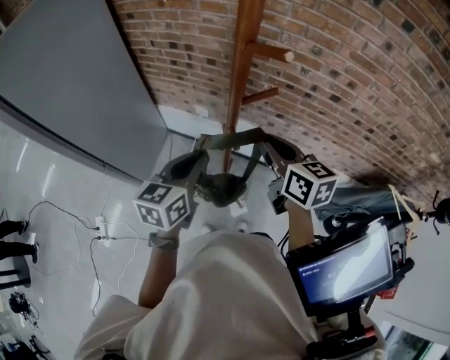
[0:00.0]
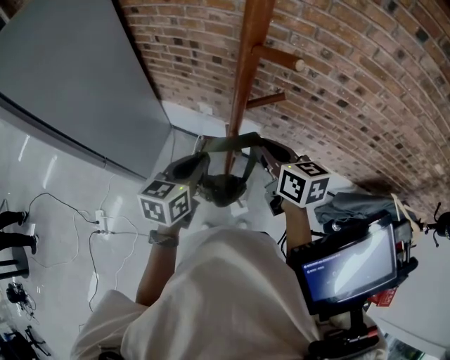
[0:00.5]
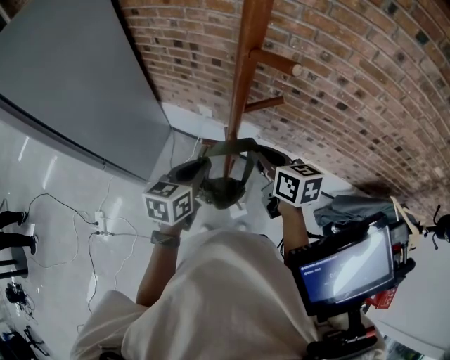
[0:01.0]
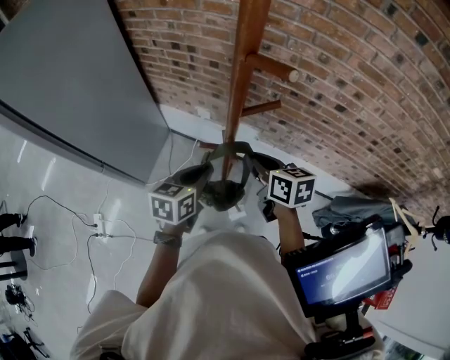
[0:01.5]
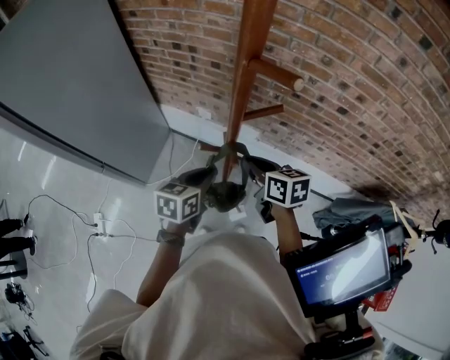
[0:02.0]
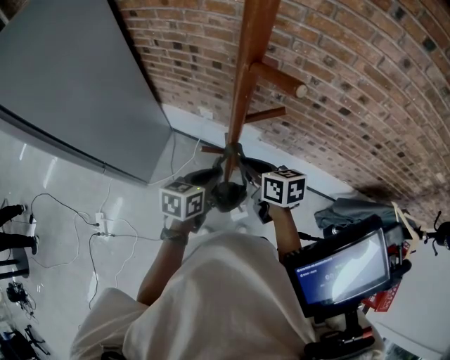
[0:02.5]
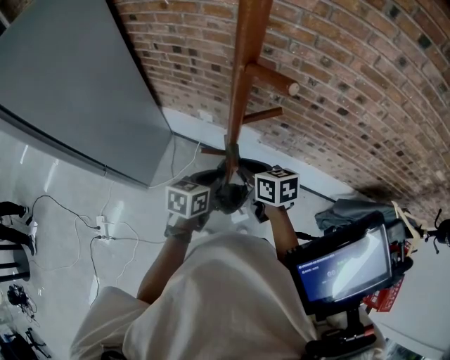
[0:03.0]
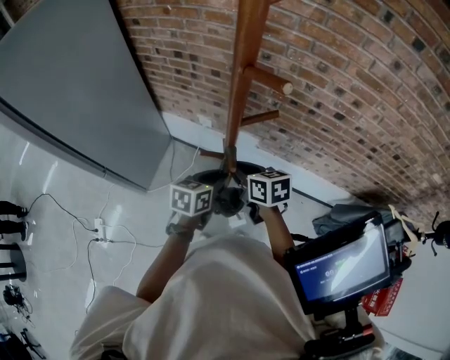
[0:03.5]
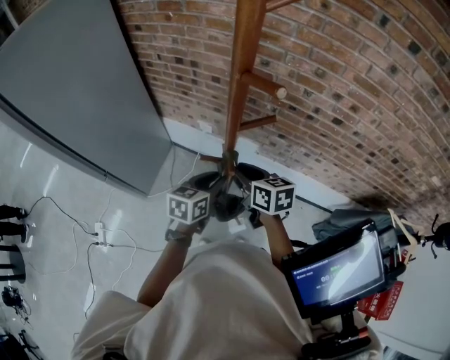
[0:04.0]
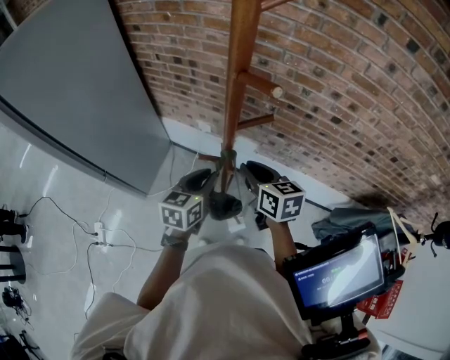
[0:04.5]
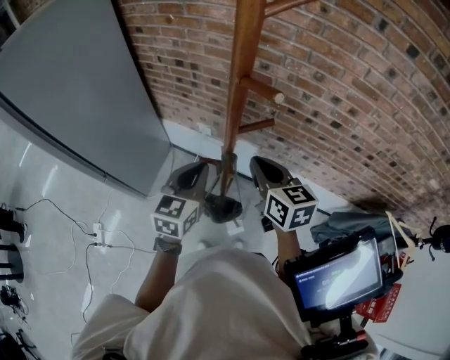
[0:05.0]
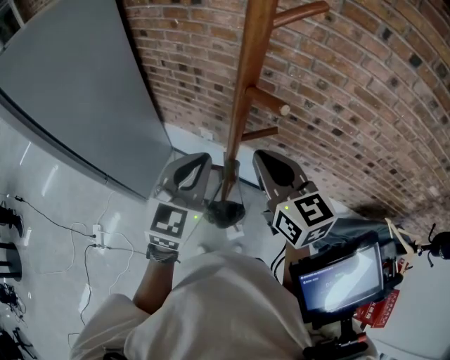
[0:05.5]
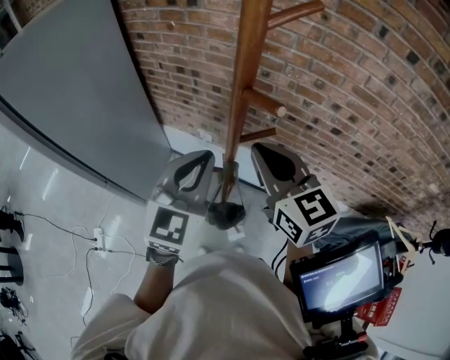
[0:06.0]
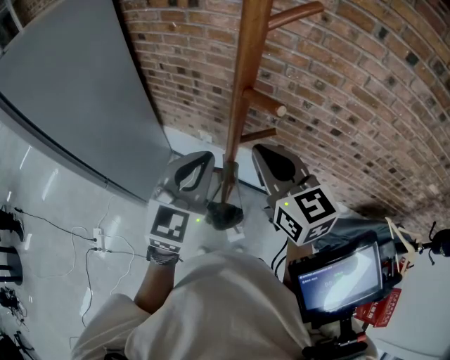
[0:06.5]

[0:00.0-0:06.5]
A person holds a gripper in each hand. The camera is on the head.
0:00.0 to 0:02.0: The two grippers go some 10 cm downward.
0:02.0 to 0:04.5: The grippers stay close to where they were, moving slightly.
0:04.5 to 0:06.5: The grippers both shift upward by some 20 cm. The right gripper turns by about 30 degrees. The left gripper turns by about 40 degrees.

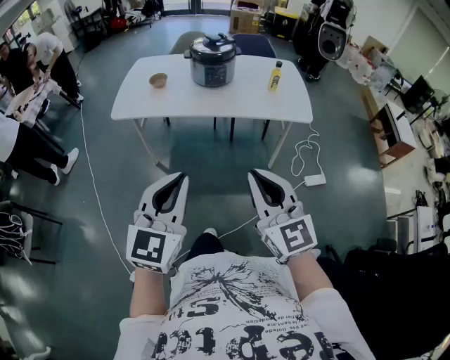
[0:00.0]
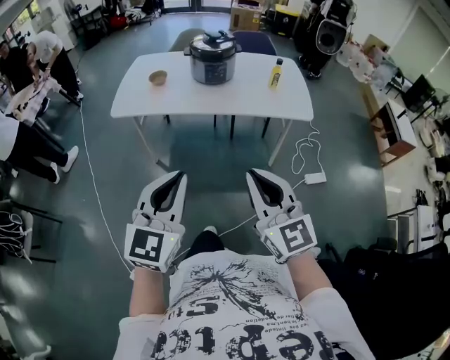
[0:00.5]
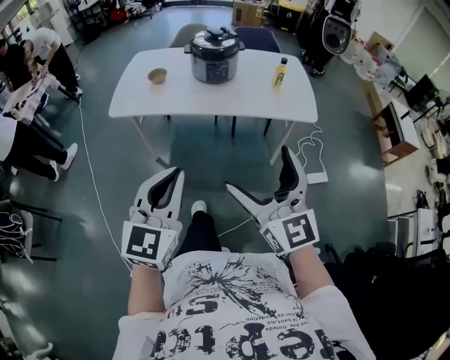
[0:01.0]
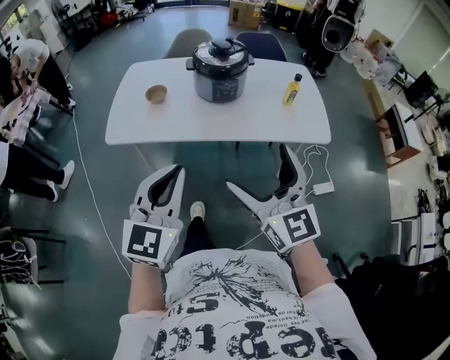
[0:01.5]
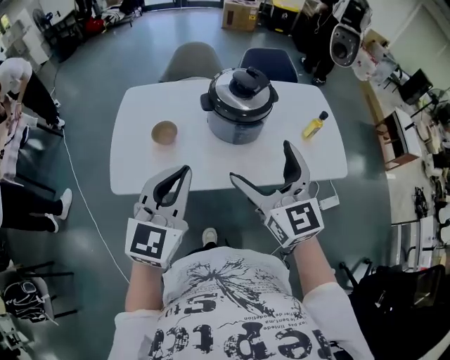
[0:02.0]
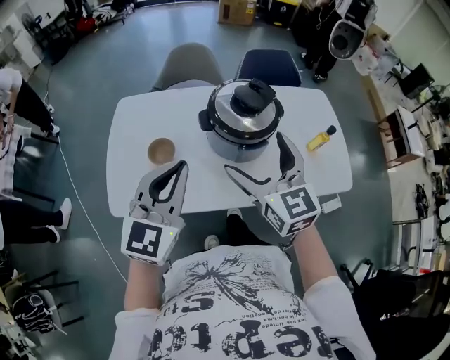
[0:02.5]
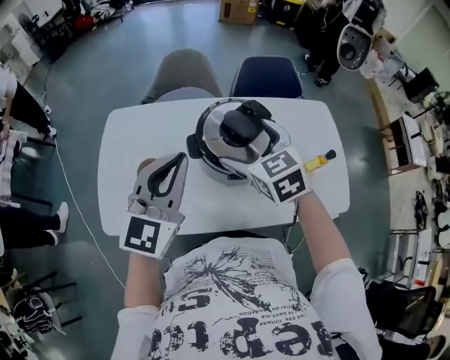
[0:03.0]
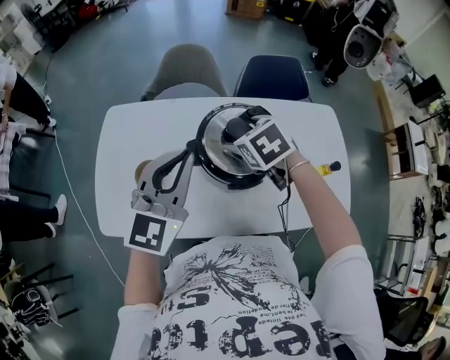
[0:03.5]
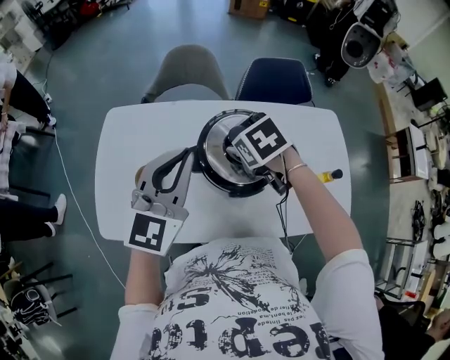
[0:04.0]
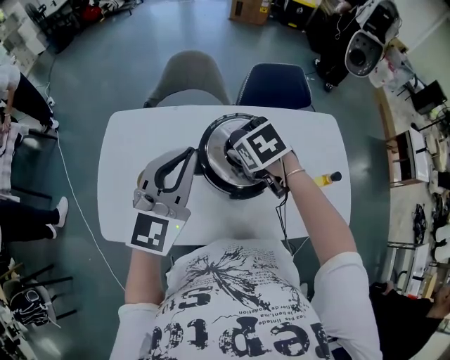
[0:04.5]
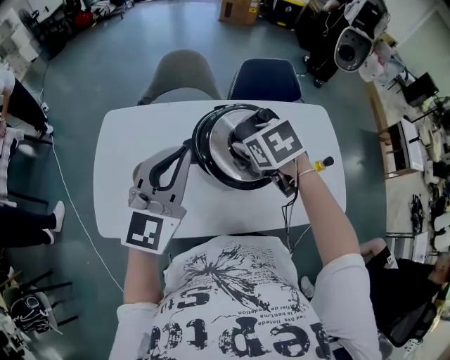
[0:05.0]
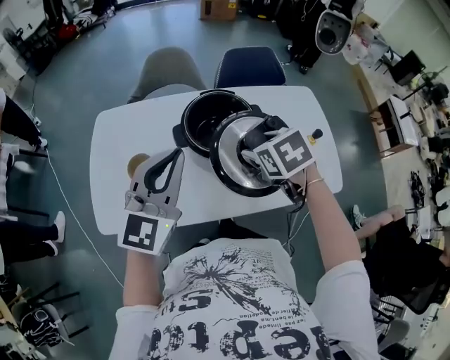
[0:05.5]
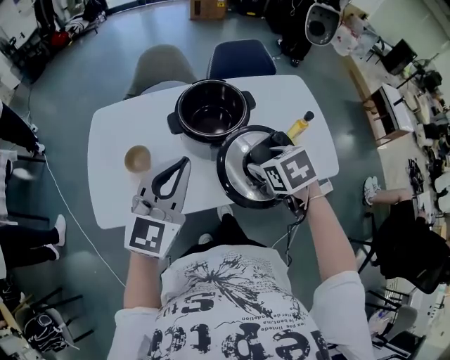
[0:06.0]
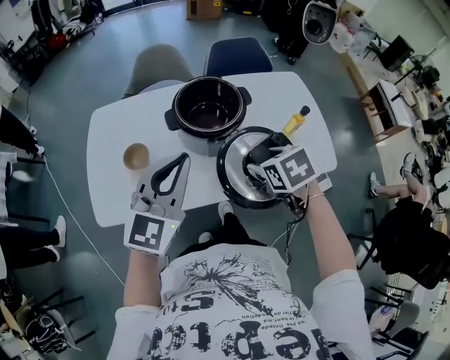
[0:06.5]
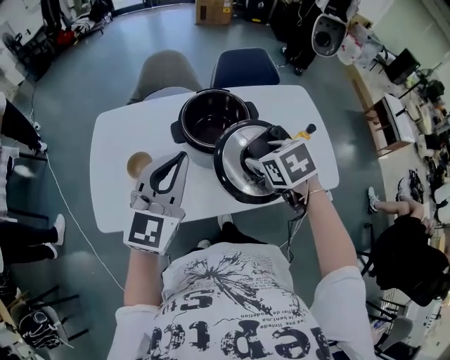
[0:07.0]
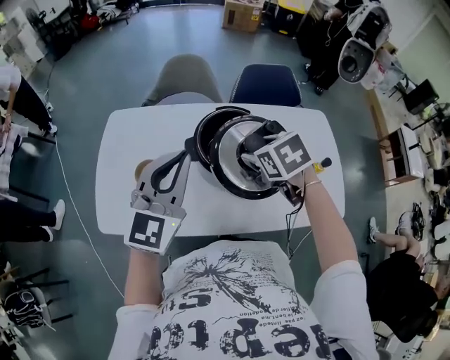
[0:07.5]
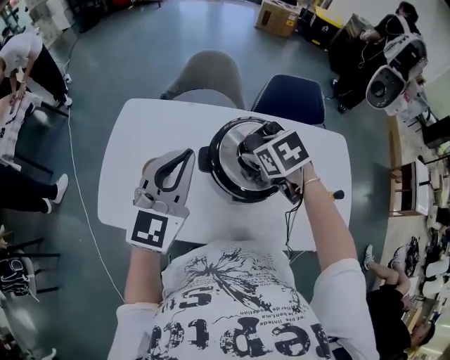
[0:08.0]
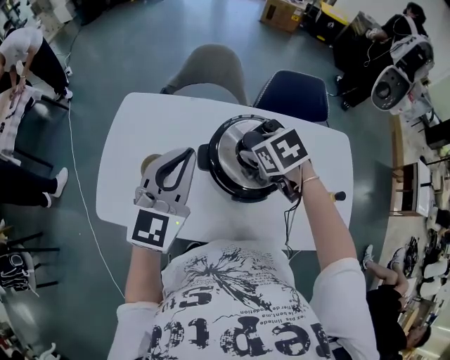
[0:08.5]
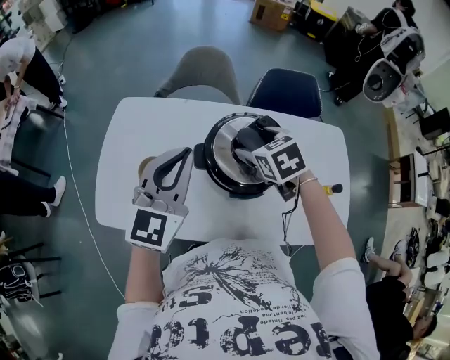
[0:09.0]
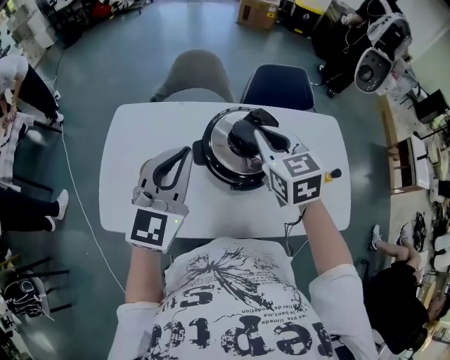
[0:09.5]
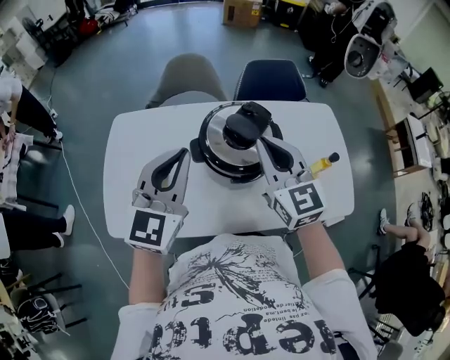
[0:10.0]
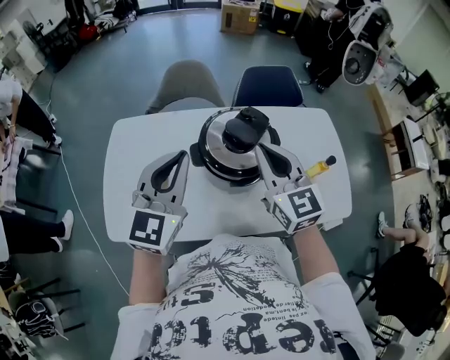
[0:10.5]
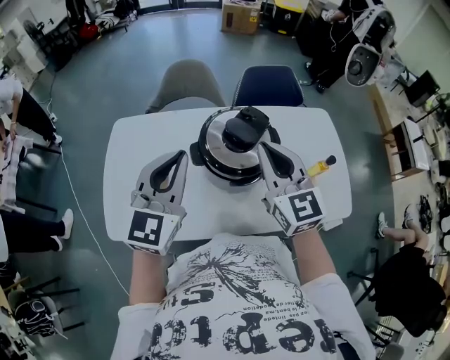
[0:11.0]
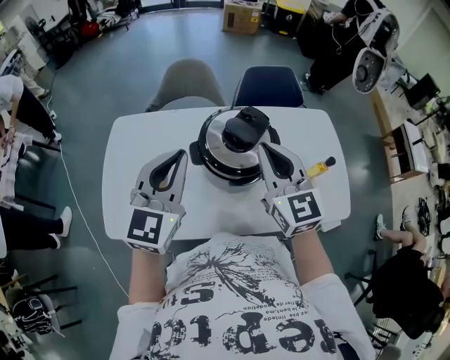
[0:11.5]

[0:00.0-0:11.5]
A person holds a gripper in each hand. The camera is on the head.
0:00.0 to 0:02.0: The pair of grippers is taken forward, about 60 cm. The right gripper opens.
0:02.0 to 0:04.0: The grippers both shift forward by approximately 40 cm. The right gripper tilts its fingers about 60 degrees downward, and closes.
0:04.0 to 0:06.0: Both grippers move backward, some 25 cm.
0:06.0 to 0:07.5: The grippers both shift forward by roughly 15 cm.
0:07.5 to 0:09.5: The right gripper moves forward and upward, some 10 cm, angles its fingers upward, by some 30 degrees, and closes up. The left gripper is displaced forward by roughly 5 cm.
0:09.5 to 0:11.5: The right gripper is displaced backward by roughly 10 cm, and turns by some 20 degrees.

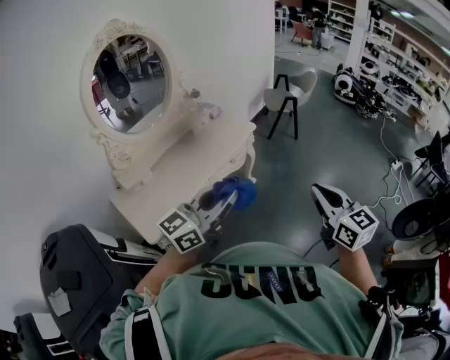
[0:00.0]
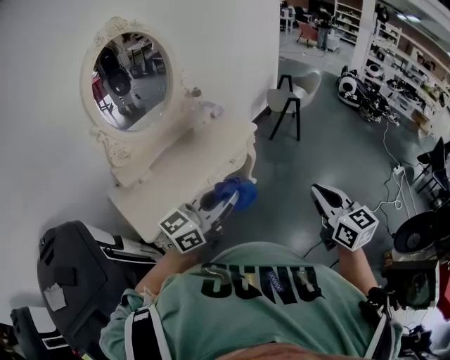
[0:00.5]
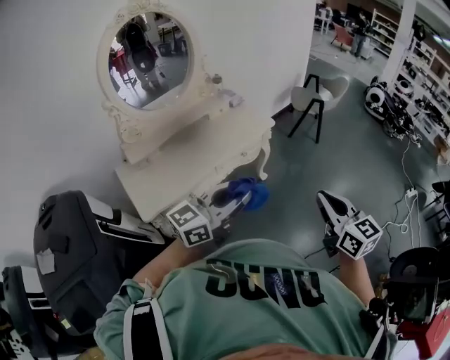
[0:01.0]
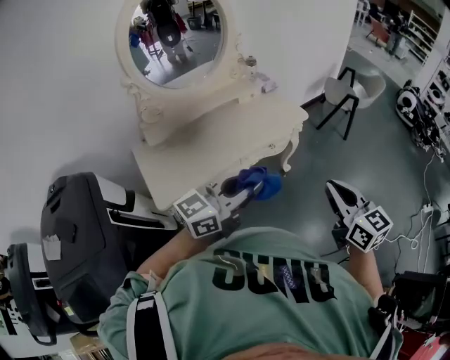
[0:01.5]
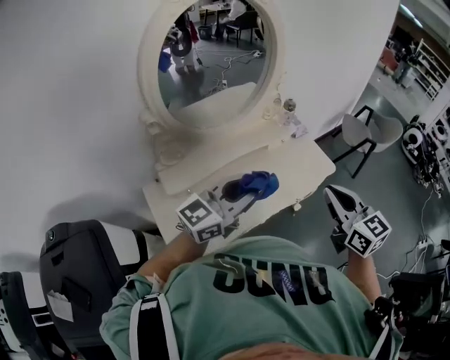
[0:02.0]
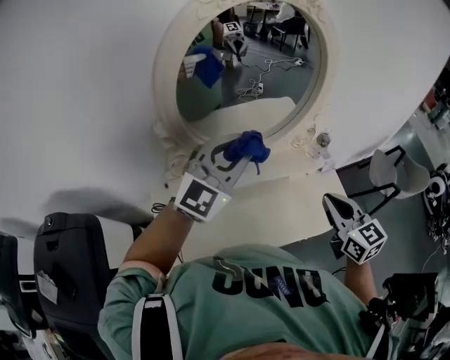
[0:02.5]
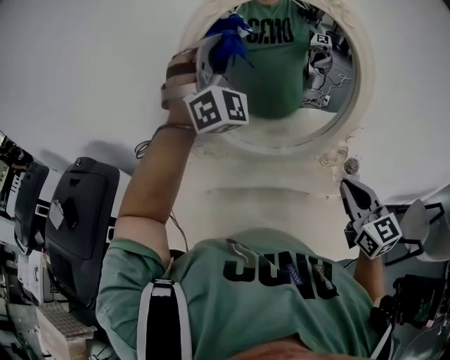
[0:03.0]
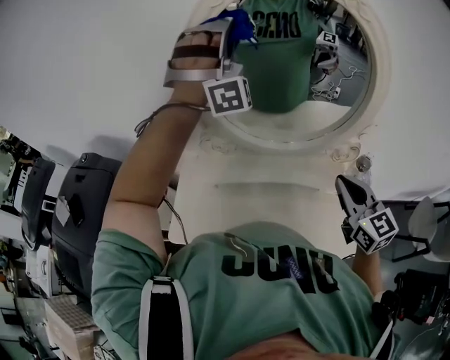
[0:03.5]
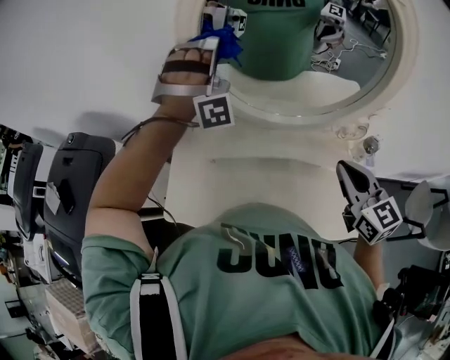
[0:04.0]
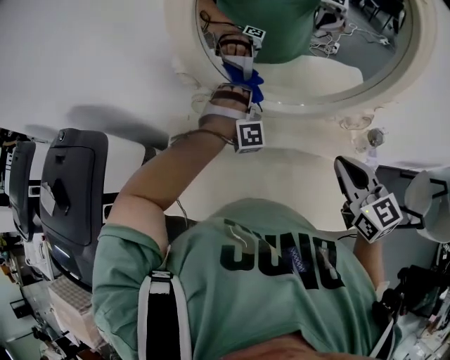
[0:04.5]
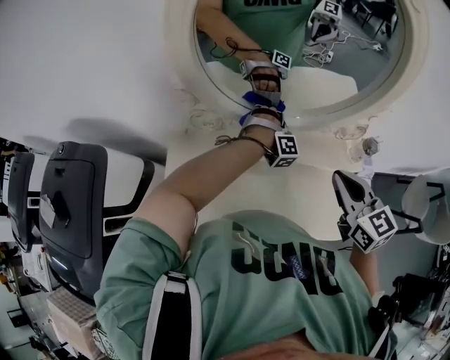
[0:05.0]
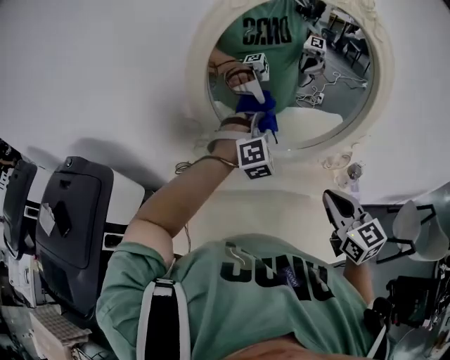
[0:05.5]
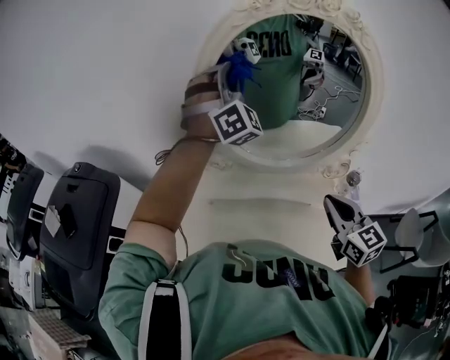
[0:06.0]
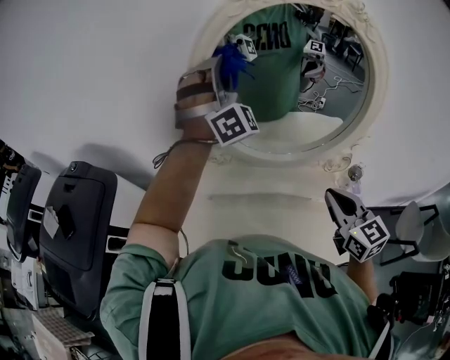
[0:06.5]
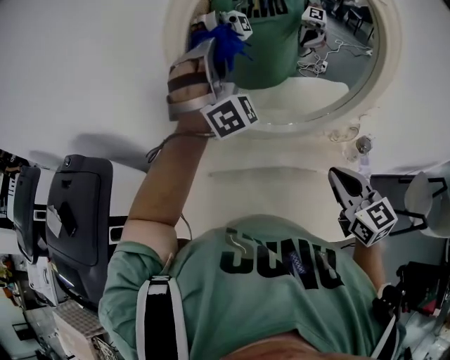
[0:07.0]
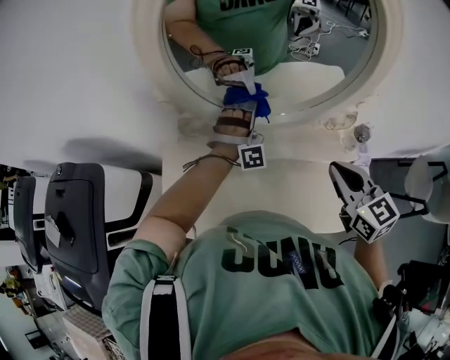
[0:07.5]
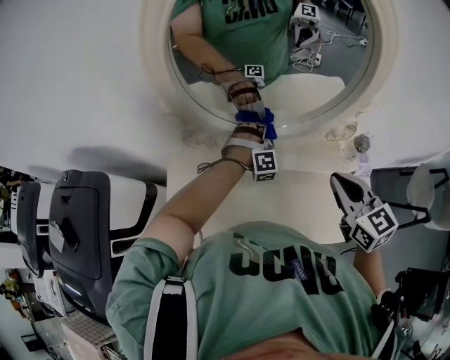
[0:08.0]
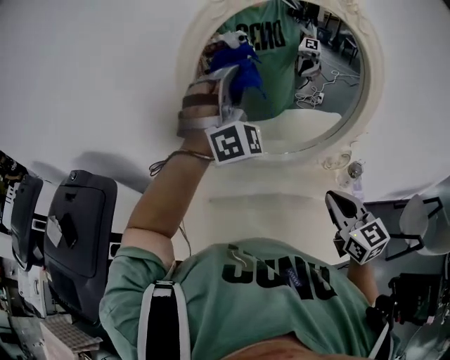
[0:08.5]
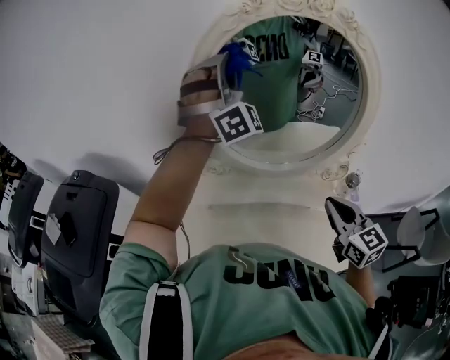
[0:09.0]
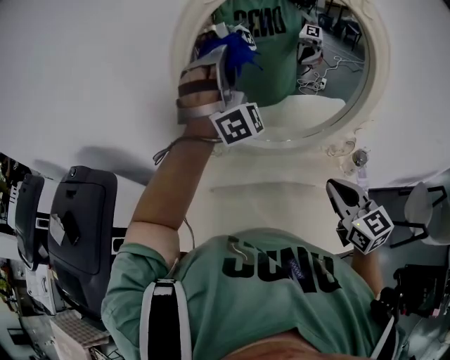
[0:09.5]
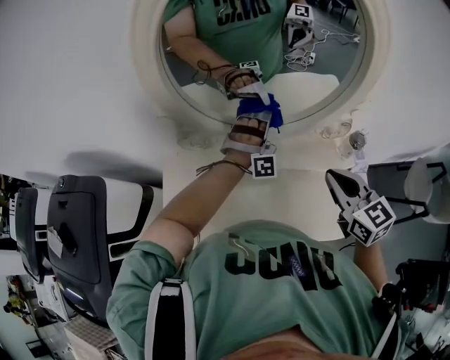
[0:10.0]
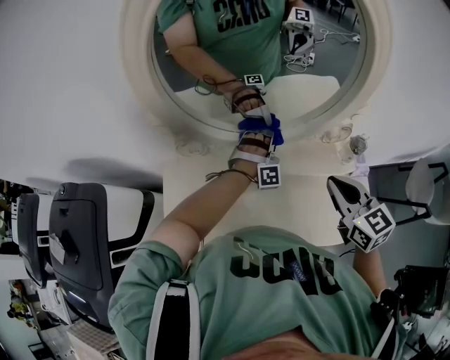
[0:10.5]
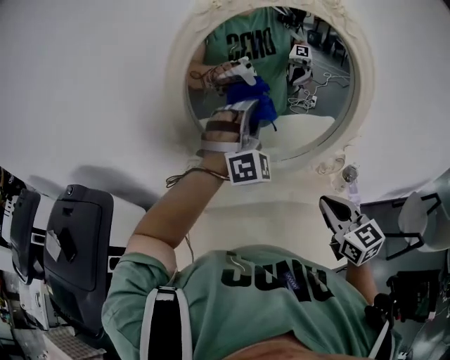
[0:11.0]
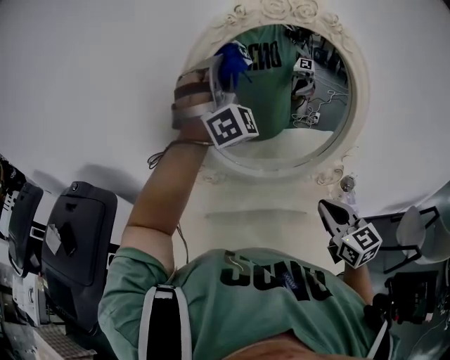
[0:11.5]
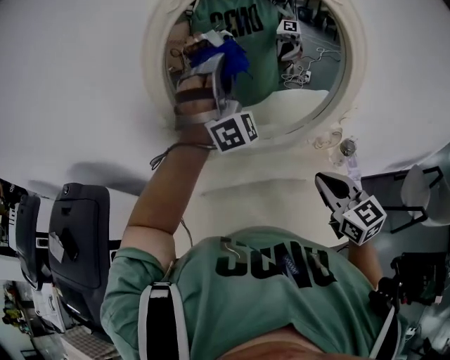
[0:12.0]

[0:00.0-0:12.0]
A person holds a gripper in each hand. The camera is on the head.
0:00.0 to 0:02.0: The right gripper shifts by roughly 40 cm, and changes its angle by roughly 20 degrees.
0:02.0 to 0:04.0: The right gripper shifts by roughly 30 cm, and swivels about 40 degrees.
